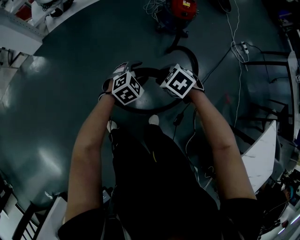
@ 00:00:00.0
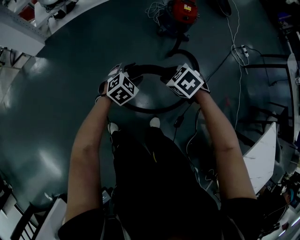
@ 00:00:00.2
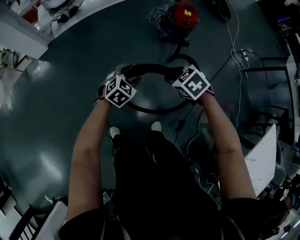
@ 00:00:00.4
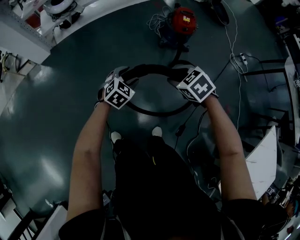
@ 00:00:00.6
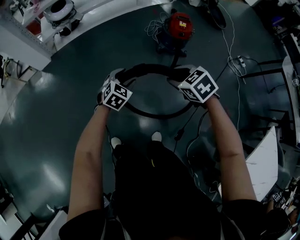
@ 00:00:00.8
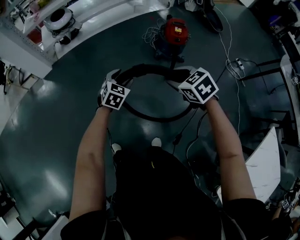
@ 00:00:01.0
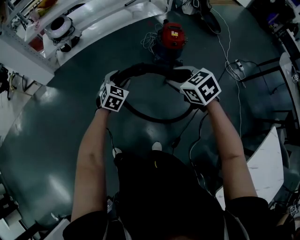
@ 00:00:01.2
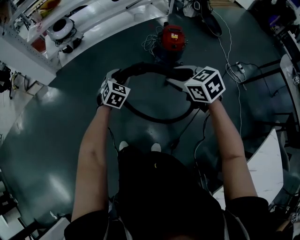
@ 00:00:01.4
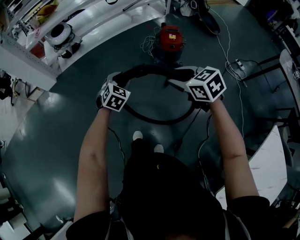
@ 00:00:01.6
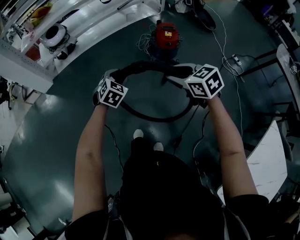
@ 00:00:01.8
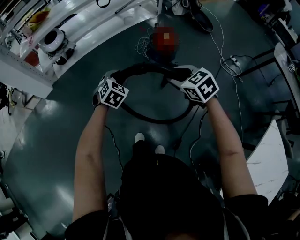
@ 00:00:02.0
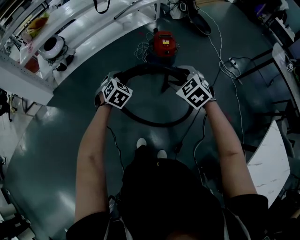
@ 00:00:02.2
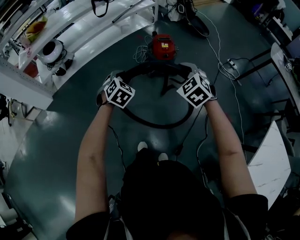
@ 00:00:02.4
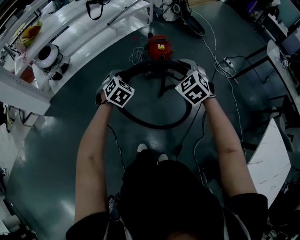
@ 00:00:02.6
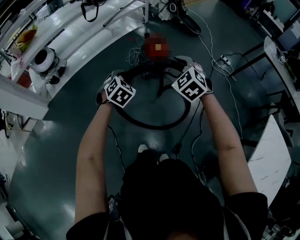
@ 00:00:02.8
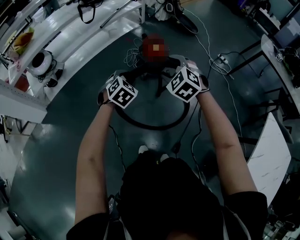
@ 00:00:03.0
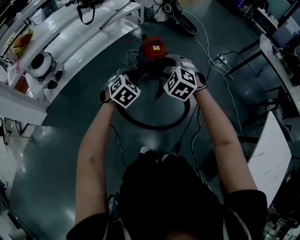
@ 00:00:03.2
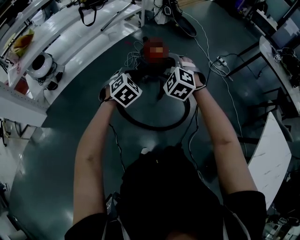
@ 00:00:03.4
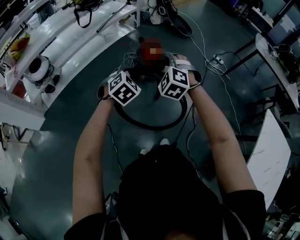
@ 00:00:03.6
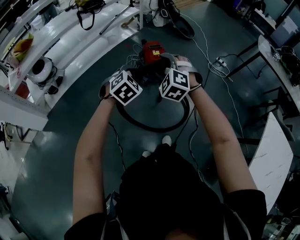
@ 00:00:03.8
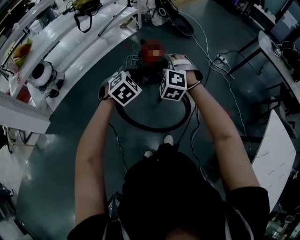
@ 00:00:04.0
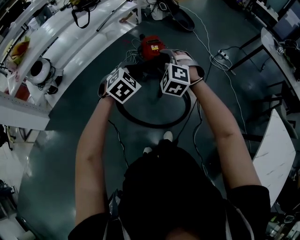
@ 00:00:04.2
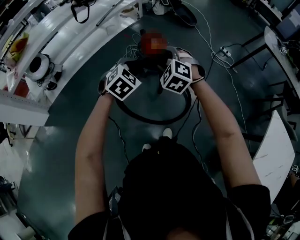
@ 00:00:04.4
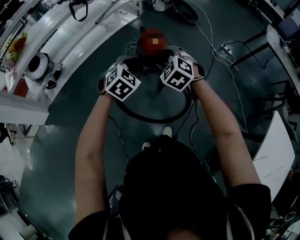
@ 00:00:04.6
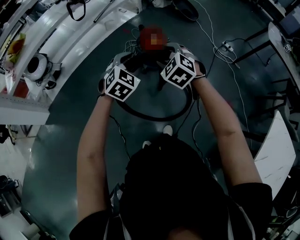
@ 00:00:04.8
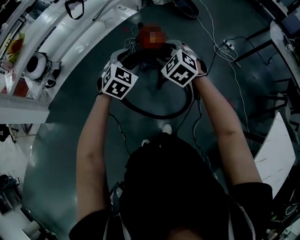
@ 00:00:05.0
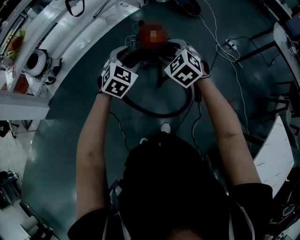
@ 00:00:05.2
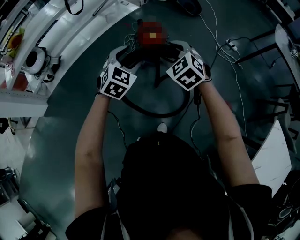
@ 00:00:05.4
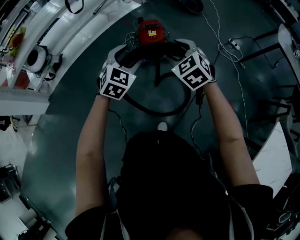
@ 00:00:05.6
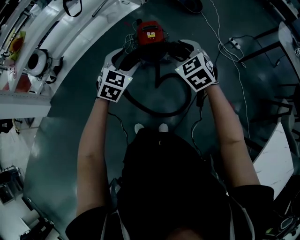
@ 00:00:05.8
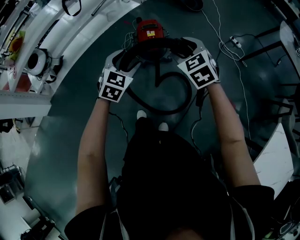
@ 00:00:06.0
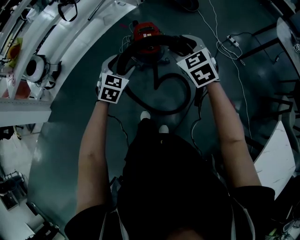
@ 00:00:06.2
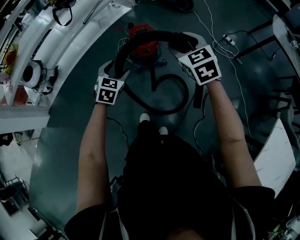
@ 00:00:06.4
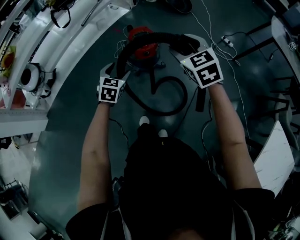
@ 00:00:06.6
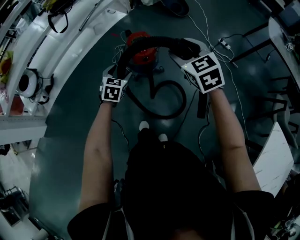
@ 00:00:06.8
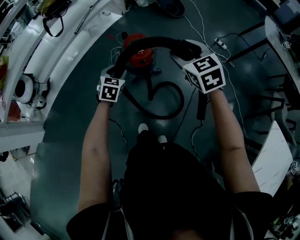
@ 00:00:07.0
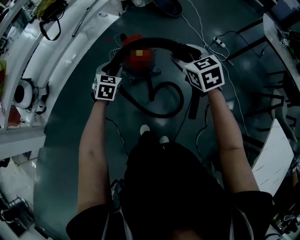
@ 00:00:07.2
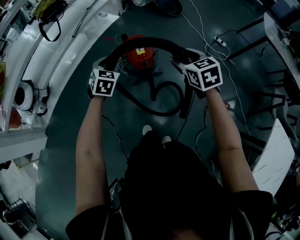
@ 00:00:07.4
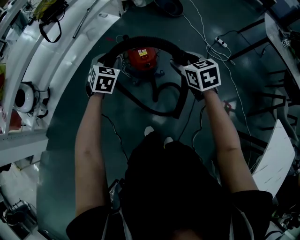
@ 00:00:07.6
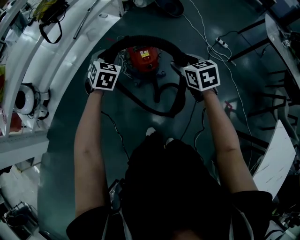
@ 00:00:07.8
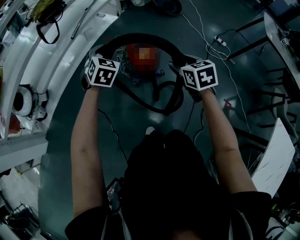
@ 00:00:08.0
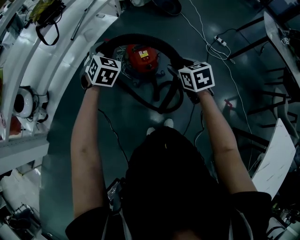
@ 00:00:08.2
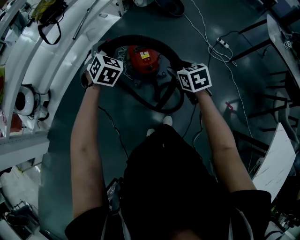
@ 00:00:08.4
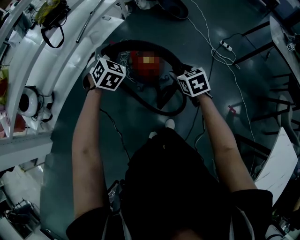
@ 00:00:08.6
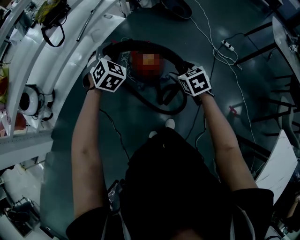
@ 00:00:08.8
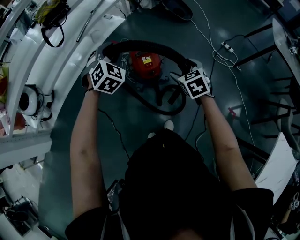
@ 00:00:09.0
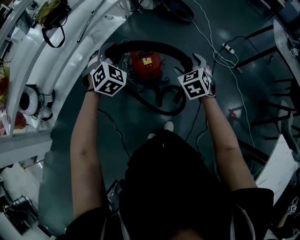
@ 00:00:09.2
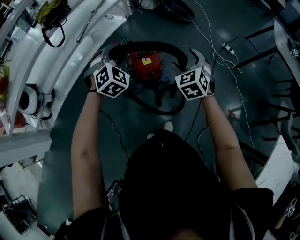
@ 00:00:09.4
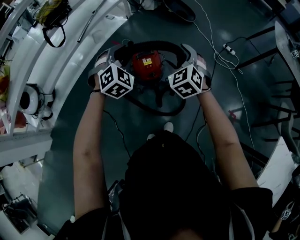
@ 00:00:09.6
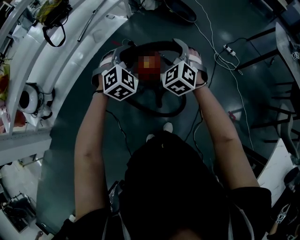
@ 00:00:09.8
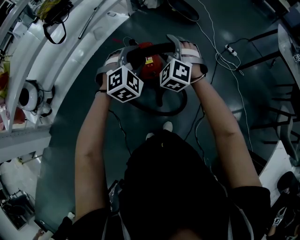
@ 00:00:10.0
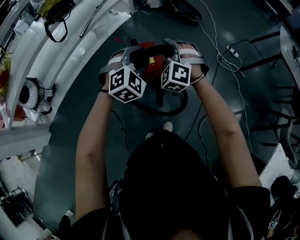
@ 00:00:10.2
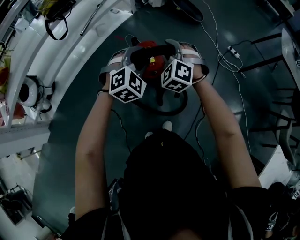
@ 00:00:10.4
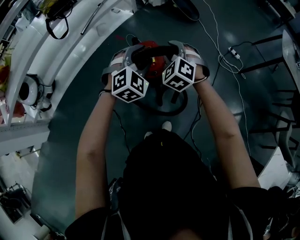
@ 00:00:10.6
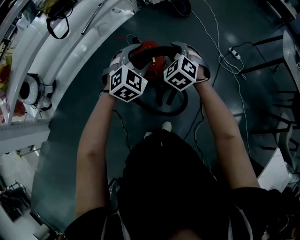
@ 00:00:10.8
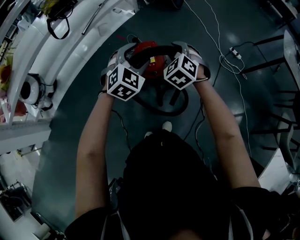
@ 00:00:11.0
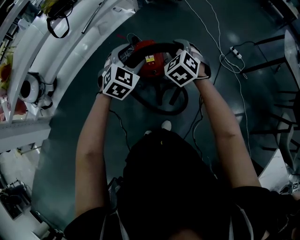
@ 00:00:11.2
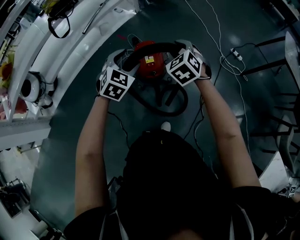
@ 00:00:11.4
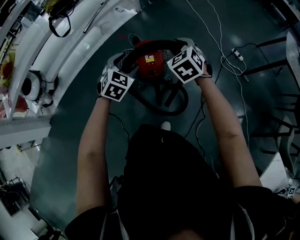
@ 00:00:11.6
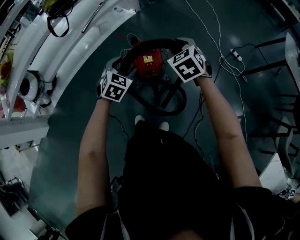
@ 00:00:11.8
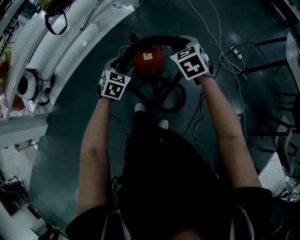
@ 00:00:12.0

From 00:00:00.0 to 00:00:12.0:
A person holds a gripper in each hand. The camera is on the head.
From 00:00:00.0 to 00:00:01.6: The left gripper travels upward and forward by some 15 cm, and swivels roughly 20 degrees. The right gripper goes some 25 cm upward and to the right, and rotates about 30 degrees.
From 00:00:01.6 to 00:00:03.0: The right gripper moves approximately 15 cm, turns by some 40 degrees, and opens its fingers. The left gripper changes place by some 10 cm.
From 00:00:03.0 to 00:00:04.4: The right gripper shifts approximately 5 cm forward. The left gripper goes roughly 10 cm to the right and forward.
From 00:00:04.4 to 00:00:06.0: The right gripper heads to the right and forward, covering approximately 20 cm, and turns by approximately 30 degrees, while the left gripper is displaced forward and to the right by approximately 15 cm, and opens up.
From 00:00:06.0 to 00:00:07.6: The left gripper travels forward and to the left by roughly 25 cm, and closes its fingers. Meanwhile the right gripper heads forward, covering about 10 cm, and rotates about 30 degrees.
From 00:00:07.6 to 00:00:09.0: The left gripper heads forward and upward, covering about 10 cm, and turns by about 20 degrees, while the right gripper travels downward and forward by roughly 10 cm.
From 00:00:09.0 to 00:00:10.4: The left gripper is displaced to the right by approximately 10 cm. The right gripper is displaced forward, to the left and upward by approximately 15 cm, twists approximately 50 degrees counterclockwise, seen from behind, and closes.
From 00:00:10.4 to 00:00:12.0: The right gripper shifts some 5 cm to the right, and swivels some 40 degrees. Meanwhile the left gripper heads downward and to the left, covering about 10 cm, and turns by approximately 40 degrees.

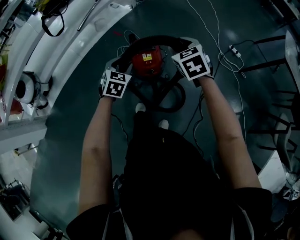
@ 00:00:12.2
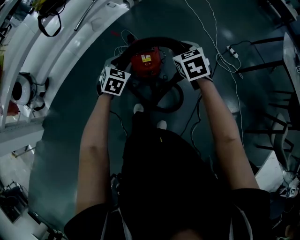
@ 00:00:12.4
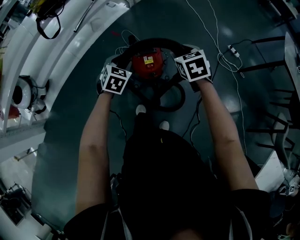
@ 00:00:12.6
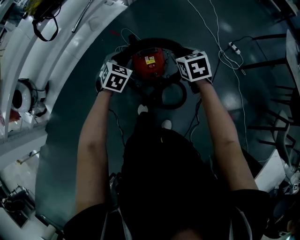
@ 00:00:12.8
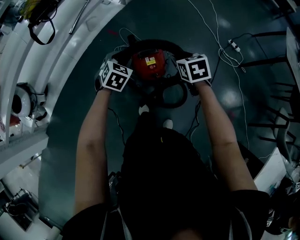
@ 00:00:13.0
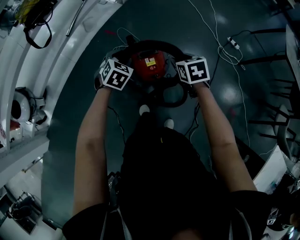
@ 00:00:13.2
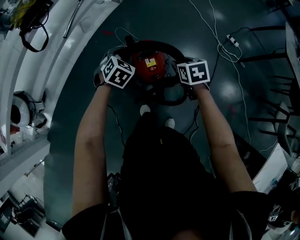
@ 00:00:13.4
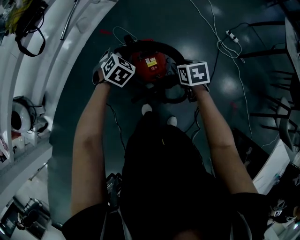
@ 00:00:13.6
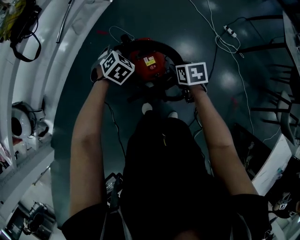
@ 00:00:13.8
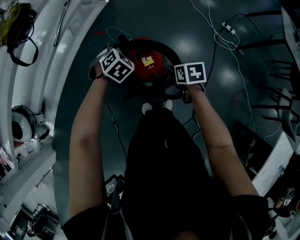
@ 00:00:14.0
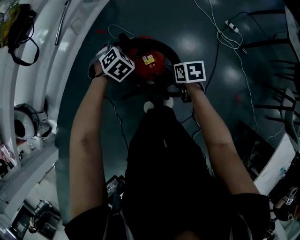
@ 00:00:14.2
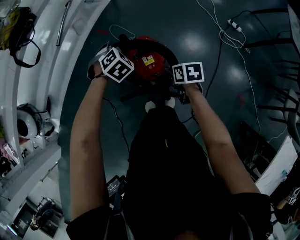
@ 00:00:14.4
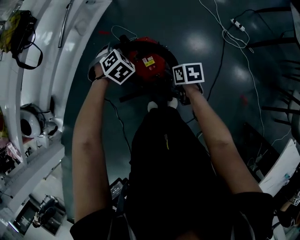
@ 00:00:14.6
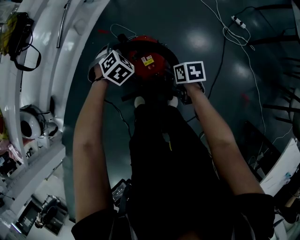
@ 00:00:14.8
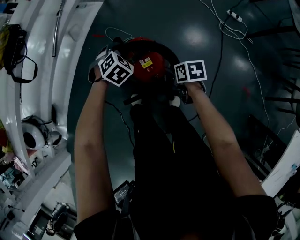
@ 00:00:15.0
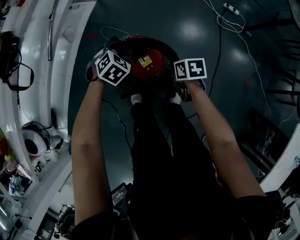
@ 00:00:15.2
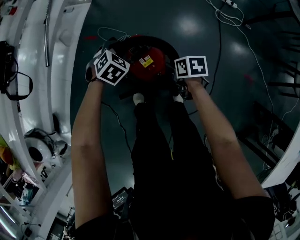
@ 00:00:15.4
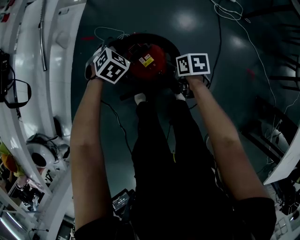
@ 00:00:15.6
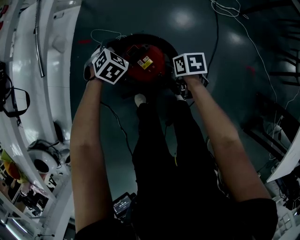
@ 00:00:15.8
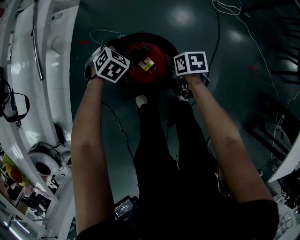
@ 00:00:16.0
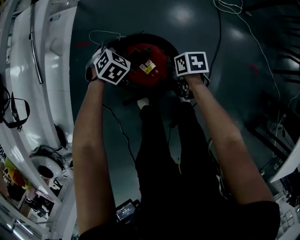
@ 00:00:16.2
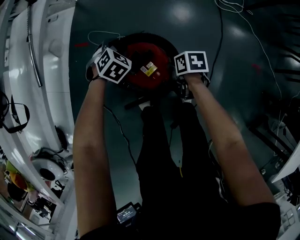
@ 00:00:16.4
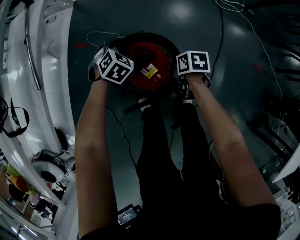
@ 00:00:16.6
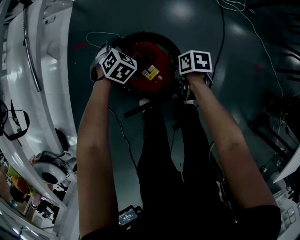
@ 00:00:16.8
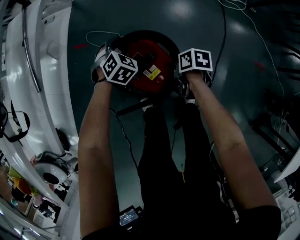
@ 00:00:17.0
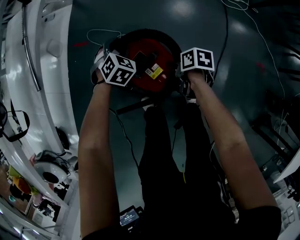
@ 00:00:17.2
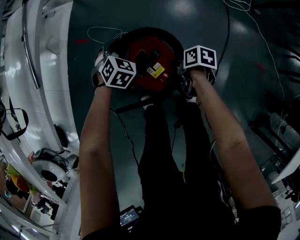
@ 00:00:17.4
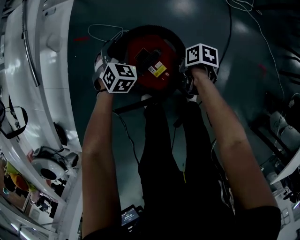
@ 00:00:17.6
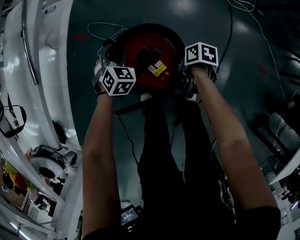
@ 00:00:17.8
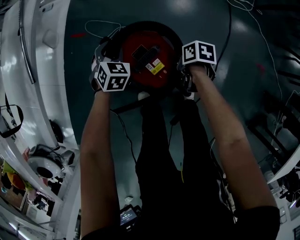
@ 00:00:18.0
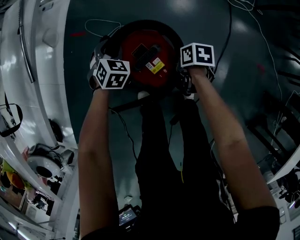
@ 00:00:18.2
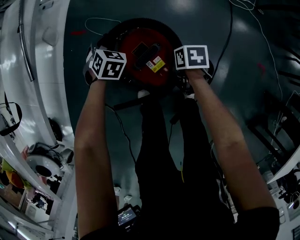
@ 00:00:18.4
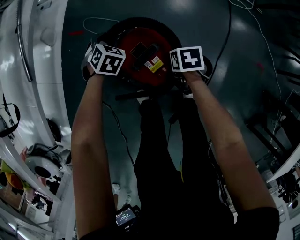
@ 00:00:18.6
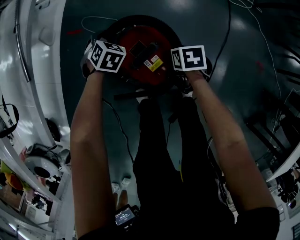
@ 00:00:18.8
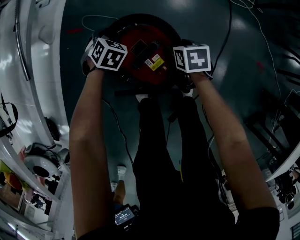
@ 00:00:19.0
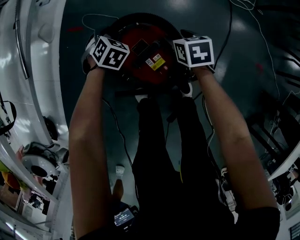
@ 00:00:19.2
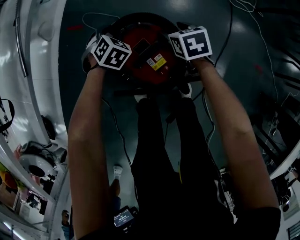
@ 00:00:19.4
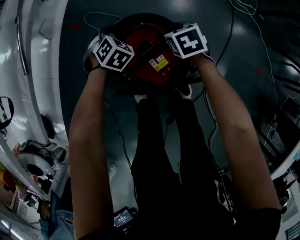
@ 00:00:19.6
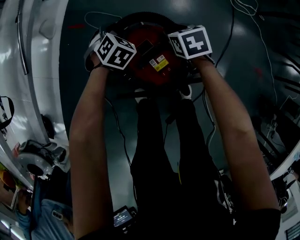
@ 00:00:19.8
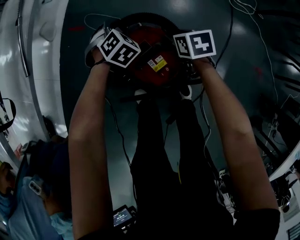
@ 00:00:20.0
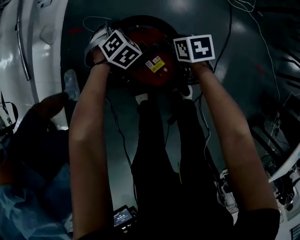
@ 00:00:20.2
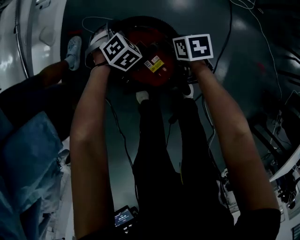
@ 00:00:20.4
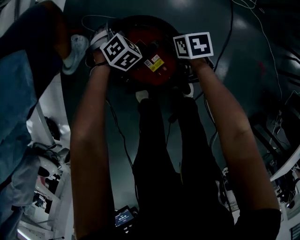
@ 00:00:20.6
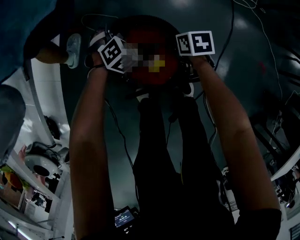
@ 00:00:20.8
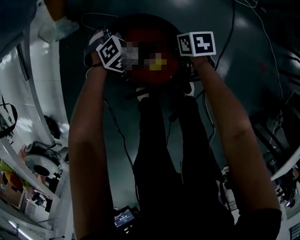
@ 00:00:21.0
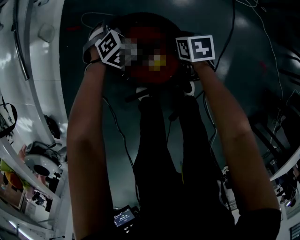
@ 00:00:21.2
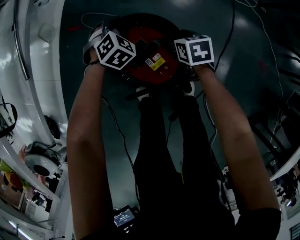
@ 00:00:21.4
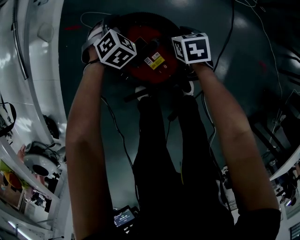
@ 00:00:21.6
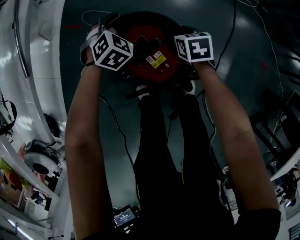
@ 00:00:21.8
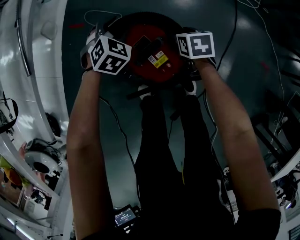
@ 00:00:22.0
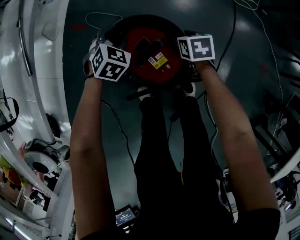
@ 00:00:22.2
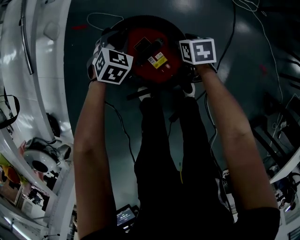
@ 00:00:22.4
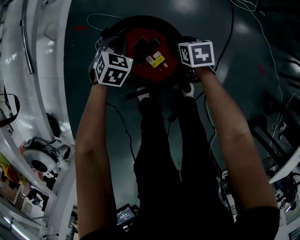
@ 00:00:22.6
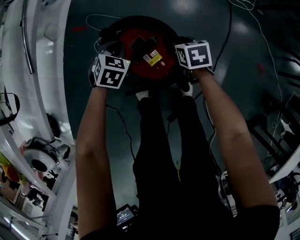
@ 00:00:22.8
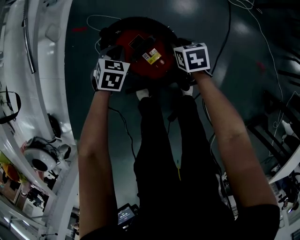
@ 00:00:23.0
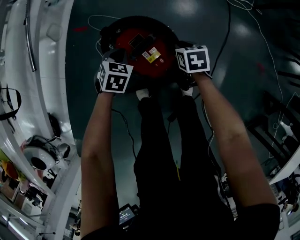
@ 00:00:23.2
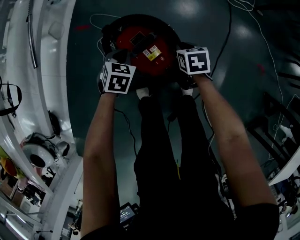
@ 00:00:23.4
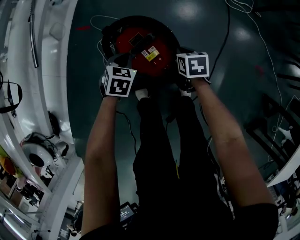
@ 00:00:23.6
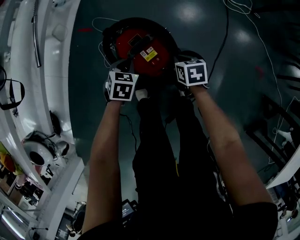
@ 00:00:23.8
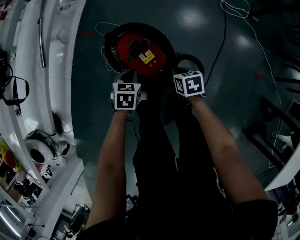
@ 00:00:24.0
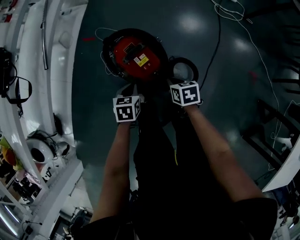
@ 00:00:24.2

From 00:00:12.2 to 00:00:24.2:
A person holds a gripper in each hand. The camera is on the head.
From 00:00:12.2 to 00:00:13.8: The right gripper heads downward, covering about 15 cm, and turns by about 40 degrees; the left gripper shifts roughly 20 cm forward, and rotates some 30 degrees.
From 00:00:13.8 to 00:00:15.2: The left gripper moves to the right and downward, about 10 cm. Meanwhile the right gripper travels downward by some 10 cm, and changes its angle by roughly 20 degrees.
From 00:00:15.2 to 00:00:16.6: Both grippers move downward and forward, approximately 15 cm. The right gripper turns by approximately 20 degrees.
From 00:00:16.6 to 00:00:18.2: The left gripper heads to the left, covering approximately 5 cm.
From 00:00:18.2 to 00:00:19.8: The right gripper moves approximately 15 cm, and turns by about 40 degrees.
From 00:00:19.8 to 00:00:21.2: The right gripper moves backward, approximately 5 cm.
From 00:00:21.2 to 00:00:22.6: The left gripper heads backward, covering about 5 cm, changes its angle by some 20 degrees, and closes.
From 00:00:22.6 to 00:00:24.2: The right gripper heads backward and upward, covering some 20 cm, and closes its fingers. The left gripper heads backward, covering approximately 25 cm, and turns by roughly 40 degrees.
